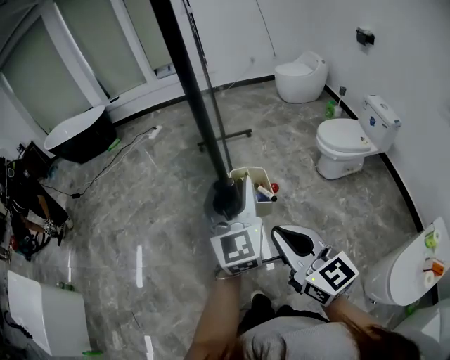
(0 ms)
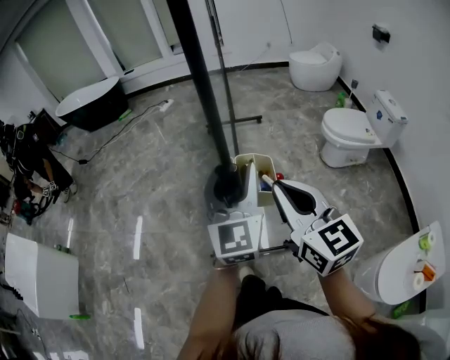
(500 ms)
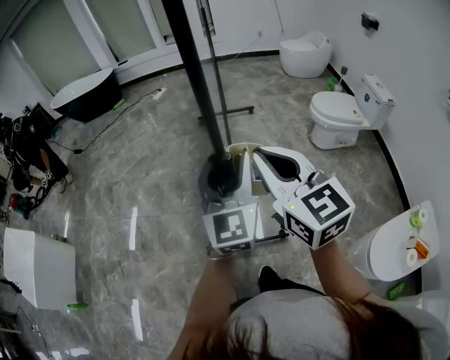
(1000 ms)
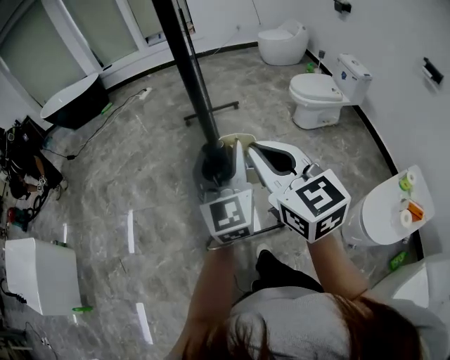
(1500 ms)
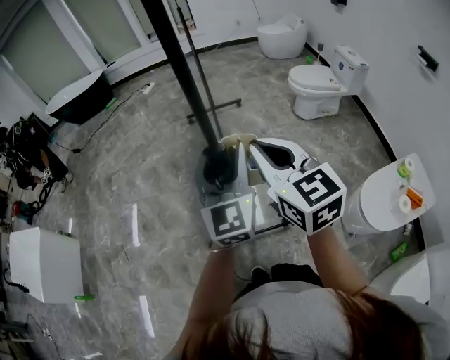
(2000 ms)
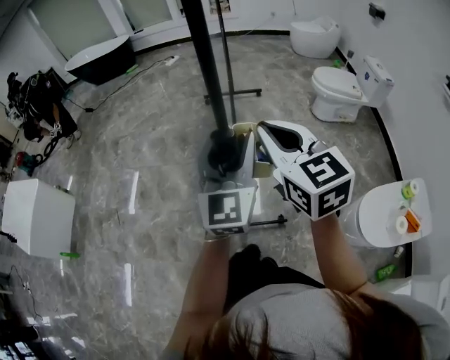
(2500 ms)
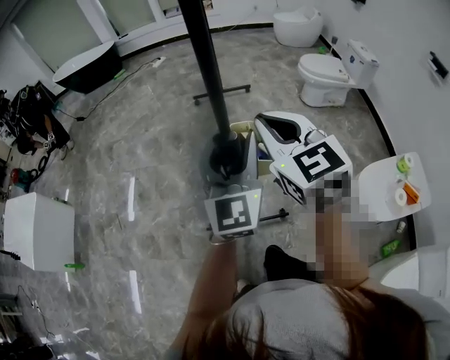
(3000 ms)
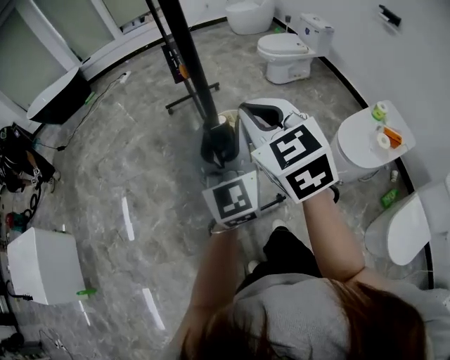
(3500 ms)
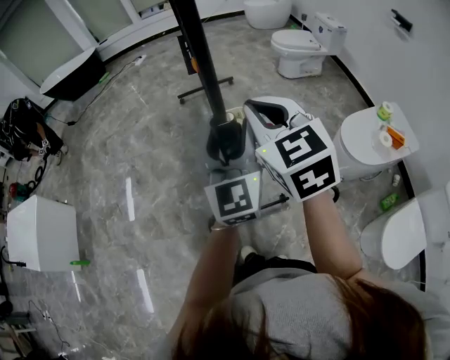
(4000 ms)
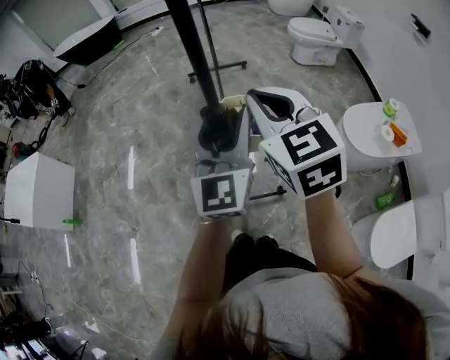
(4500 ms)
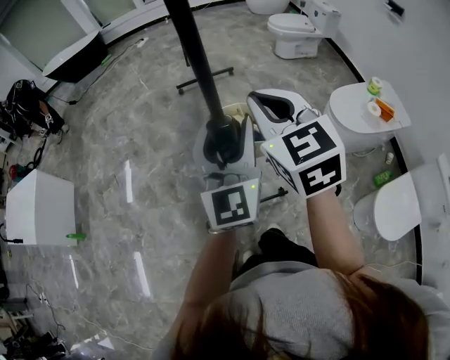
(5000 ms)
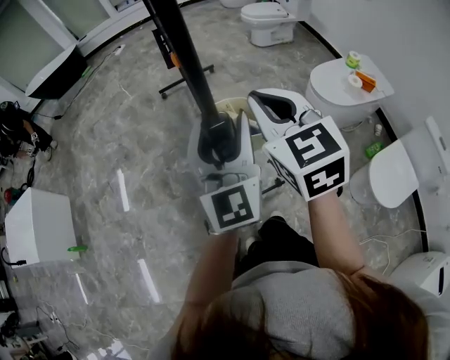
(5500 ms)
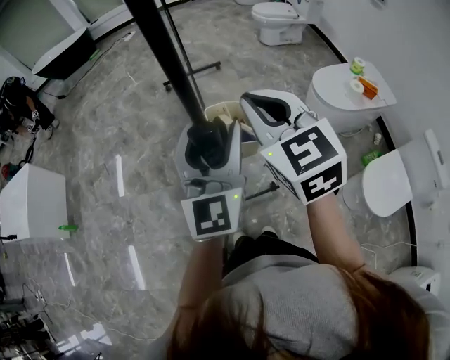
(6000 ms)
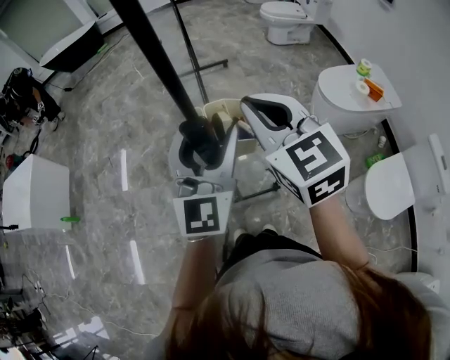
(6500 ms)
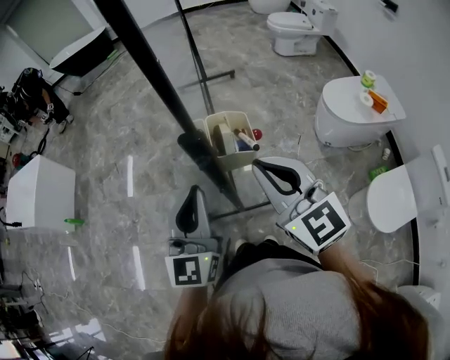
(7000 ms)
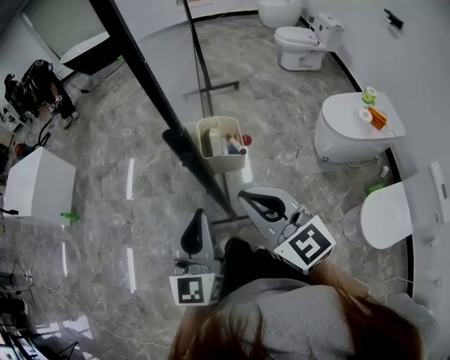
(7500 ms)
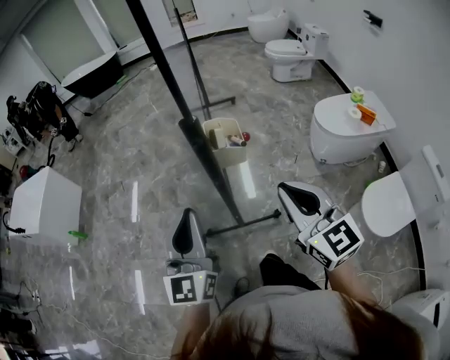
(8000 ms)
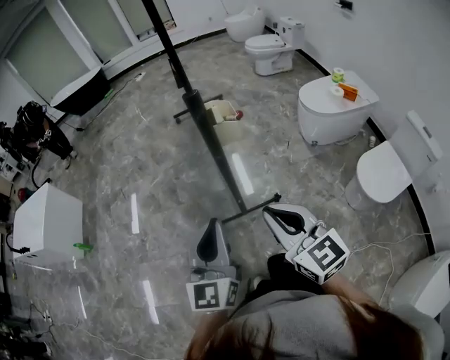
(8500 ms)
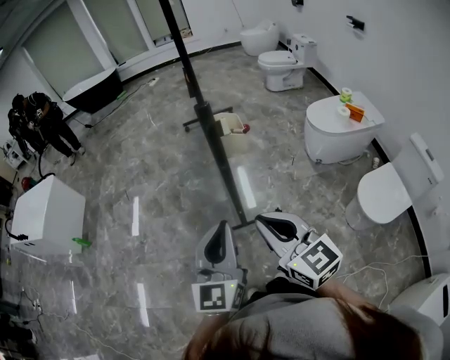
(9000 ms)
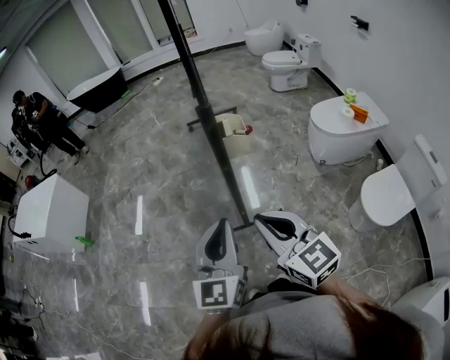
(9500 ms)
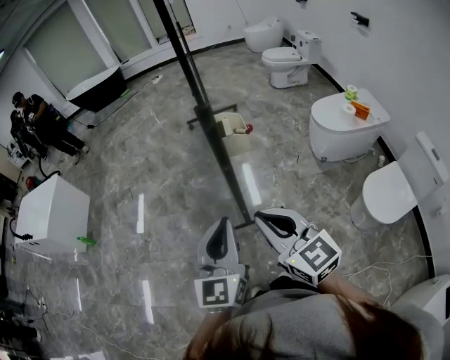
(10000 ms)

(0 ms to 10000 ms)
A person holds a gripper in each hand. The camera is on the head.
0 ms - 2000 ms: Both grippers travel together backward, about 30 cm.
2000 ms - 4000 ms: The grippers both shift backward by some 25 cm.
4000 ms - 6000 ms: Both grippers travel together backward, approximately 25 cm.
6000 ms - 8000 ms: The right gripper goes some 20 cm backward; the left gripper moves backward and to the left, about 20 cm, and closes up.
8000 ms - 10000 ms: The right gripper shifts roughly 15 cm to the left and backward. Meanwhile the left gripper travels backward by approximately 10 cm.

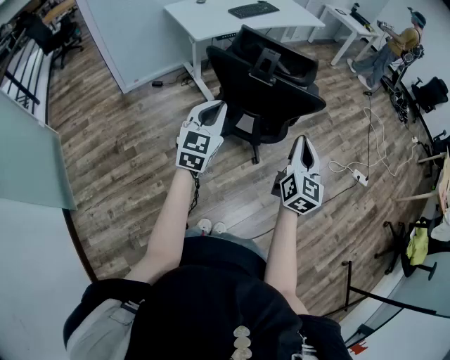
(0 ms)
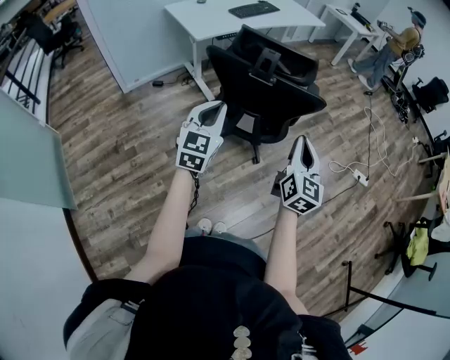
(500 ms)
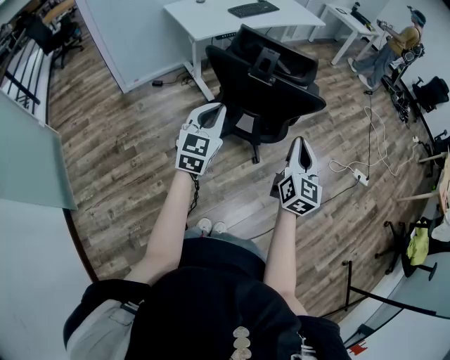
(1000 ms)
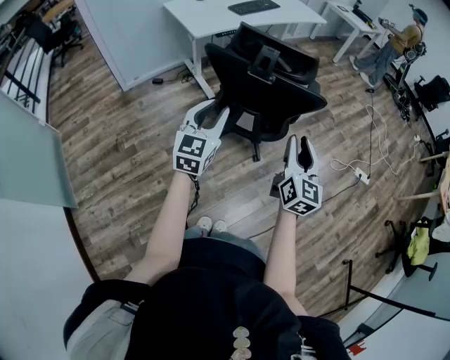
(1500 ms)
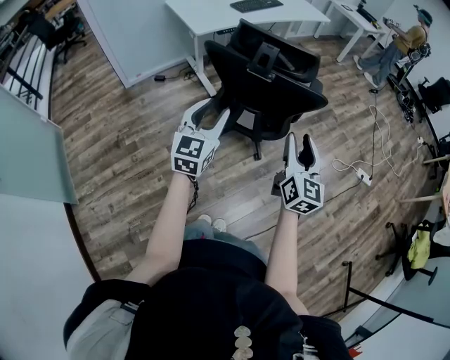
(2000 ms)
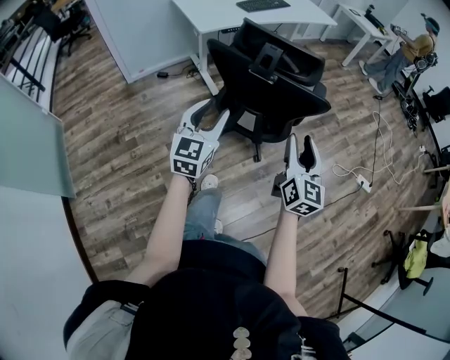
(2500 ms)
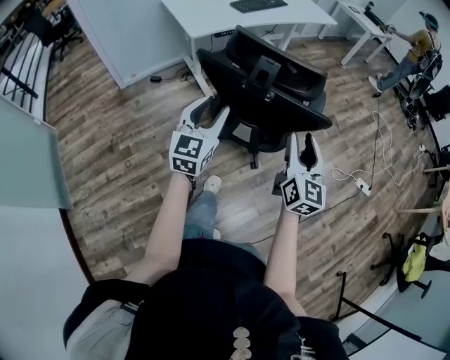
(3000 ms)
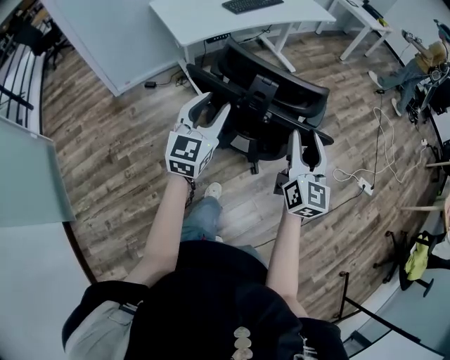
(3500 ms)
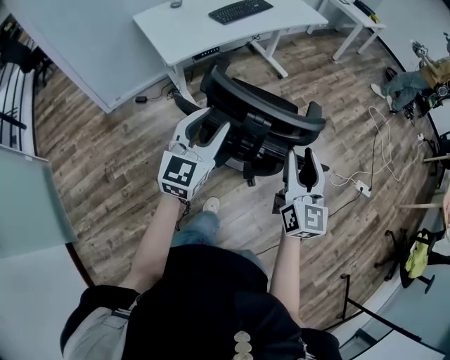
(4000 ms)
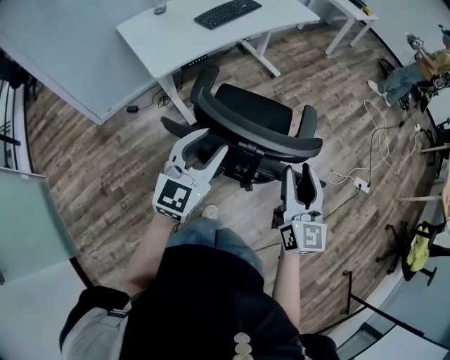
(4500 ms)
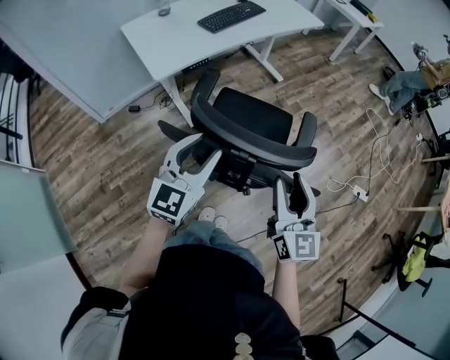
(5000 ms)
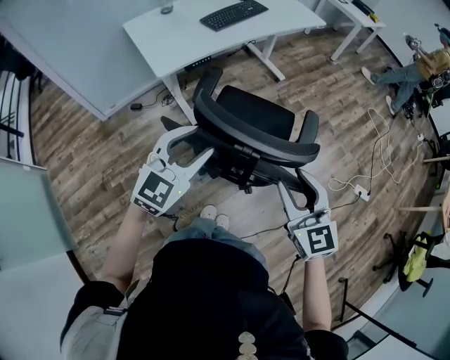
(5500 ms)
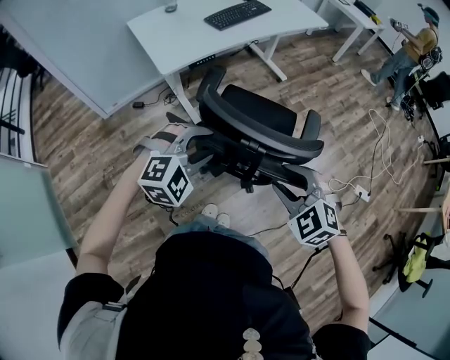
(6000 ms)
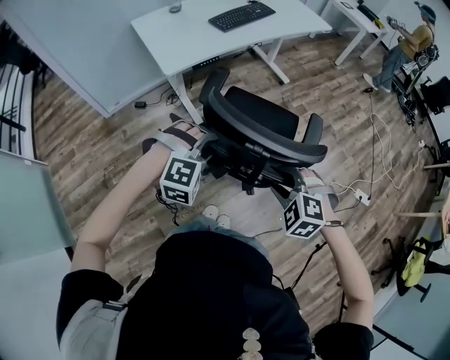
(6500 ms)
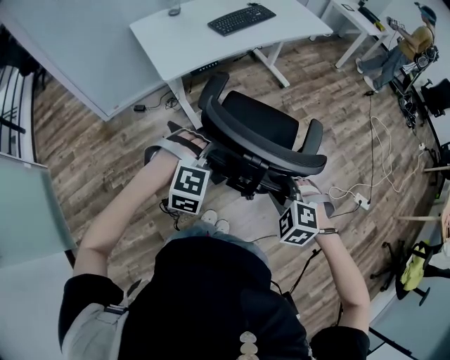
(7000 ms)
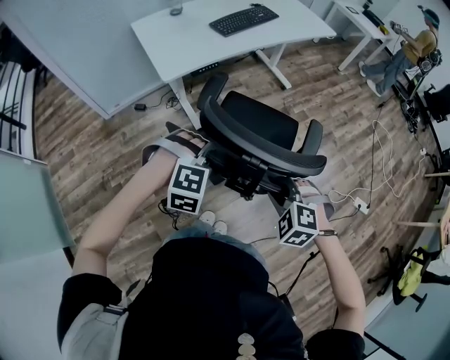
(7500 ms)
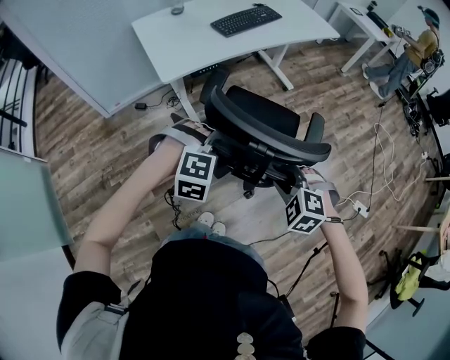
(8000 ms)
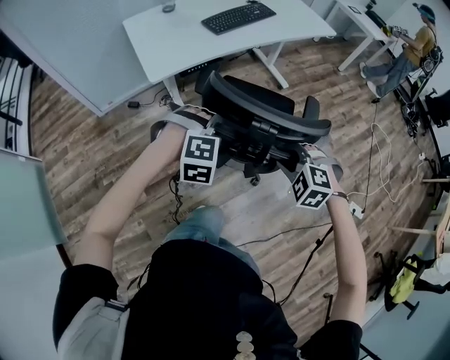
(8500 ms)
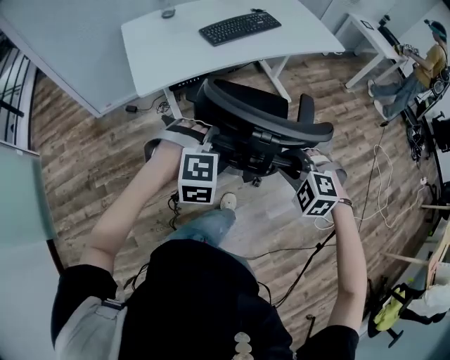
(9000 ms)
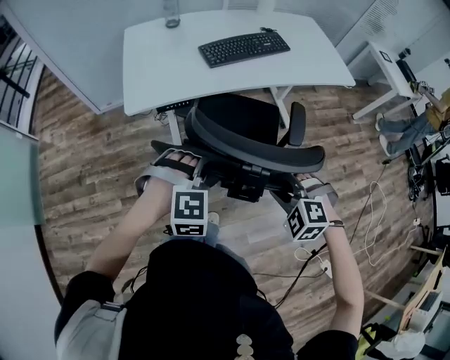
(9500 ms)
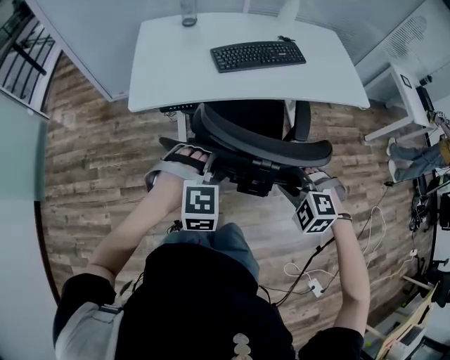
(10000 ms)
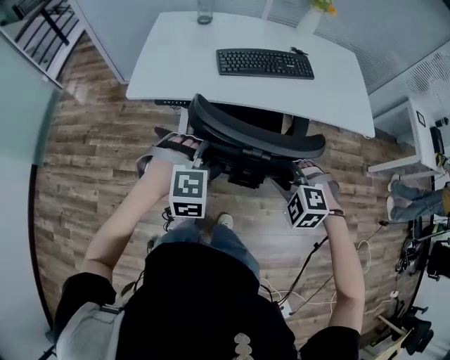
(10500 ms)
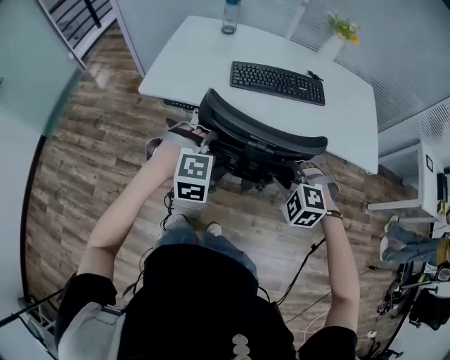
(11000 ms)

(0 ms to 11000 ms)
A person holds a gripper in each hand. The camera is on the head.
0 ms - 2000 ms: The left gripper opens up, while the right gripper opens its fingers.
2000 ms - 3500 ms: Both grippers travel together forward, some 20 cm.
3500 ms - 5500 ms: Both grippers travel together forward, roughly 5 cm. The right gripper rotates approximately 30 degrees. Meanwhile the left gripper changes its angle by roughly 30 degrees.
5500 ms - 7500 ms: Both grippers travel together downward, roughly 10 cm. The left gripper points its fingers approximately 50 degrees further downward. The right gripper points its fingers about 50 degrees further downward.
7500 ms - 9000 ms: The two grippers go roughly 25 cm forward and to the right.
9000 ms - 11000 ms: The right gripper shifts by some 35 cm, and changes its angle by approximately 40 degrees. Meanwhile the left gripper moves about 30 cm, and changes its angle by approximately 40 degrees.

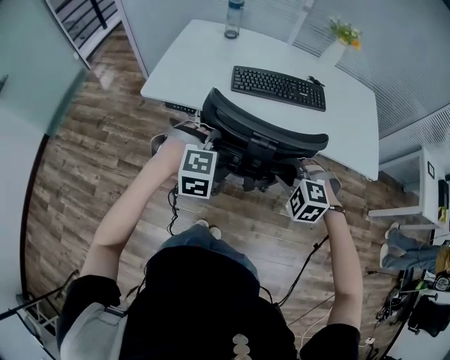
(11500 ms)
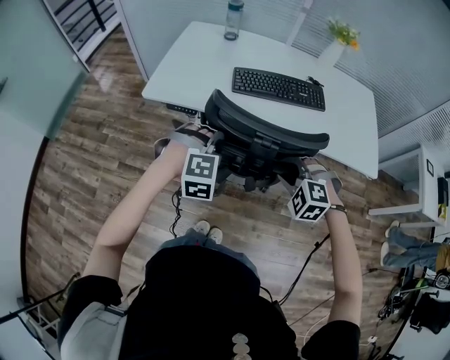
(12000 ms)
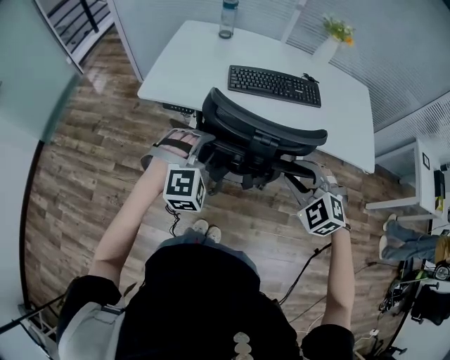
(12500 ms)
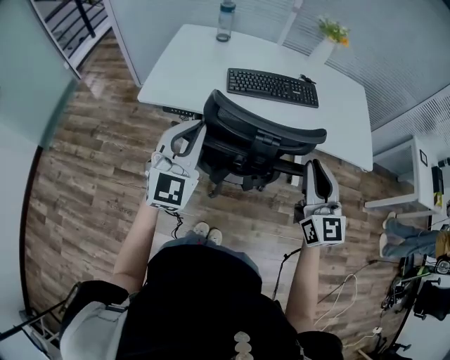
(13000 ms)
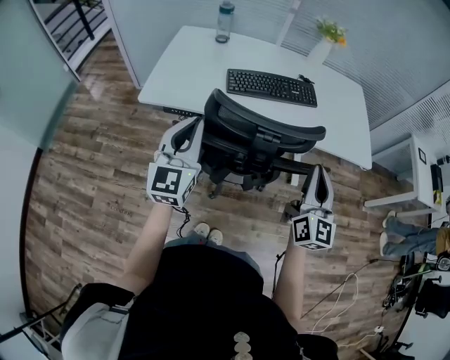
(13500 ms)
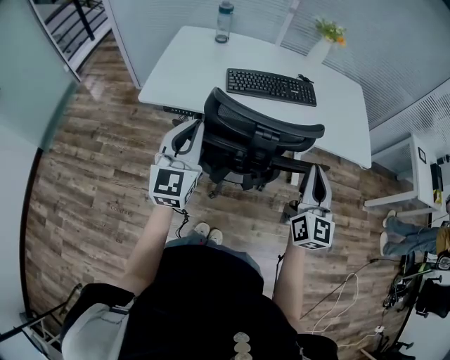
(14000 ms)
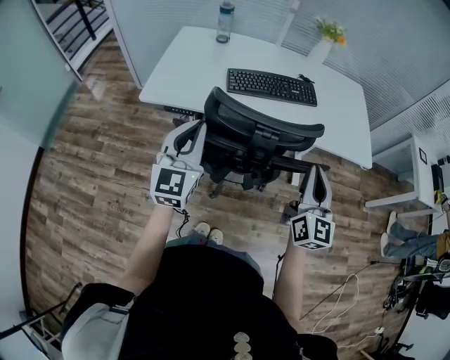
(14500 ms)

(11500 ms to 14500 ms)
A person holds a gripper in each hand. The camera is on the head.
11500 ms - 13000 ms: Both grippers move upward, about 15 cm. The left gripper points its fingers some 60 degrees further upward, and closes up, while the right gripper tips its fingers upward by about 60 degrees.

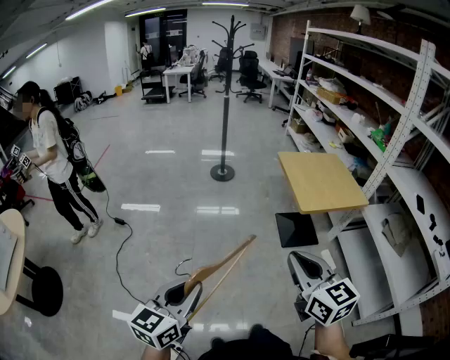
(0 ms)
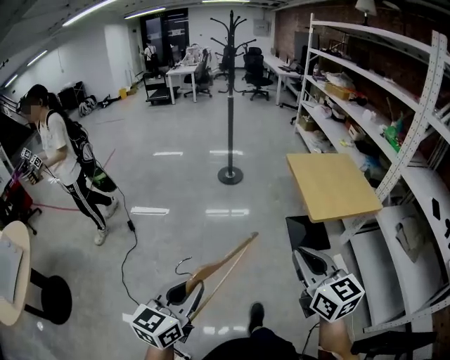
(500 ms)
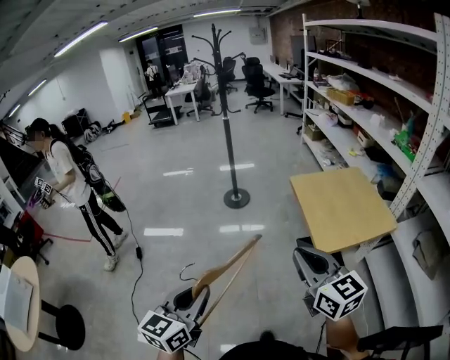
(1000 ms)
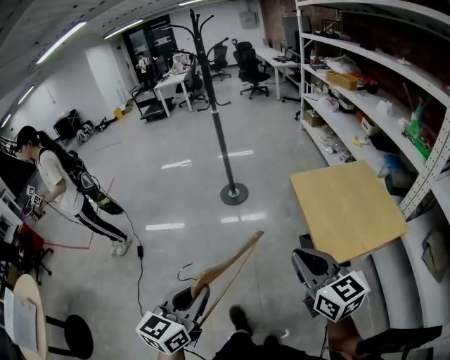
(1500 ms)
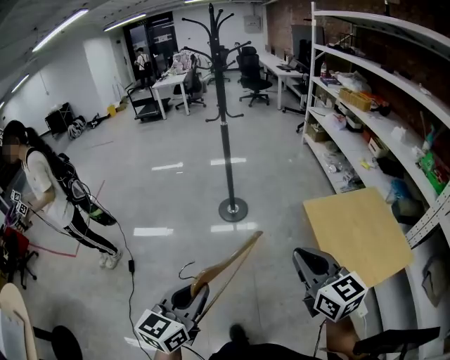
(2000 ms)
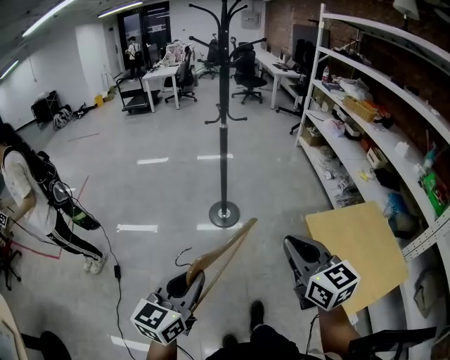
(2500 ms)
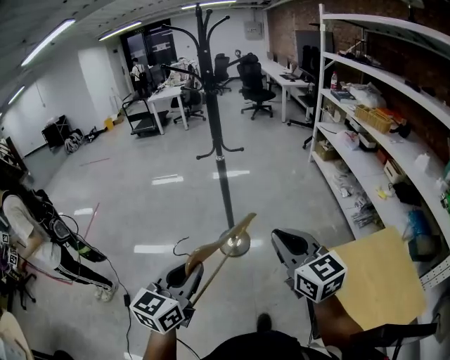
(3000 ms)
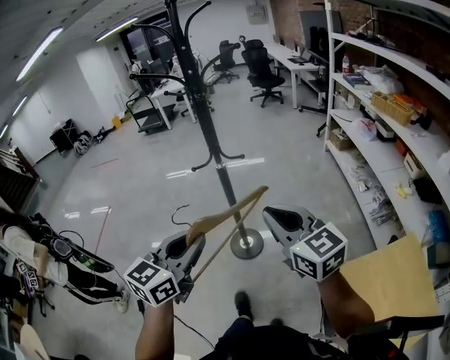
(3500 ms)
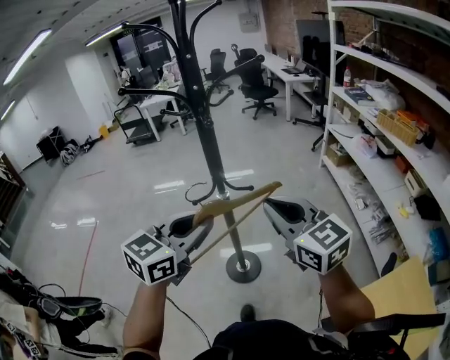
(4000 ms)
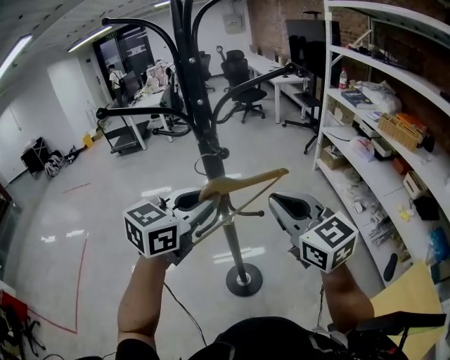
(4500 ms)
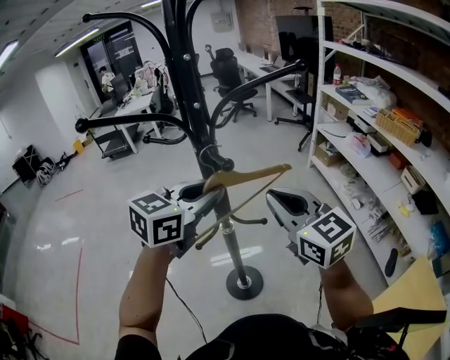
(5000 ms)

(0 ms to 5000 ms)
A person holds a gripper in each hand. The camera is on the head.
0 ms - 2500 ms: The two grippers travel together, forward, about 70 cm.
2500 ms - 5000 ms: Both grippers are carried forward, about 70 cm. The left gripper changes its angle by about 30 degrees.
